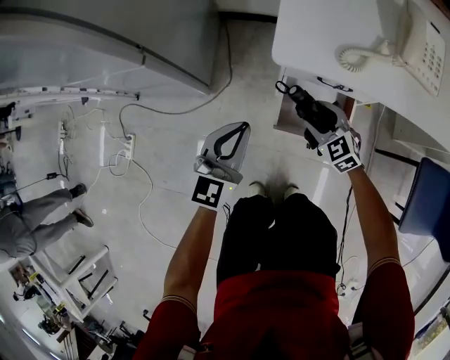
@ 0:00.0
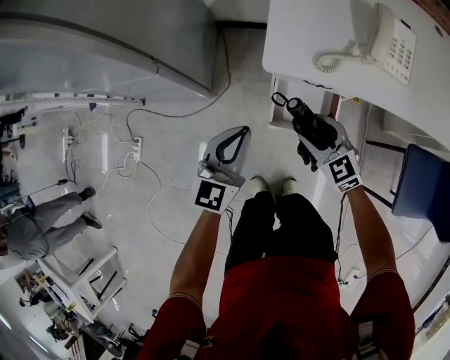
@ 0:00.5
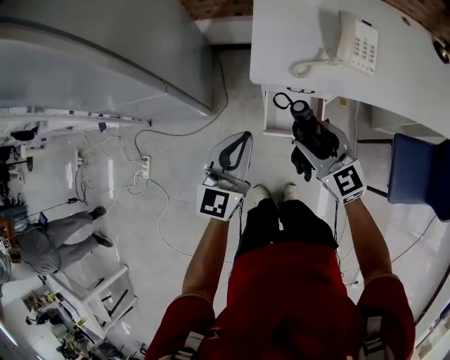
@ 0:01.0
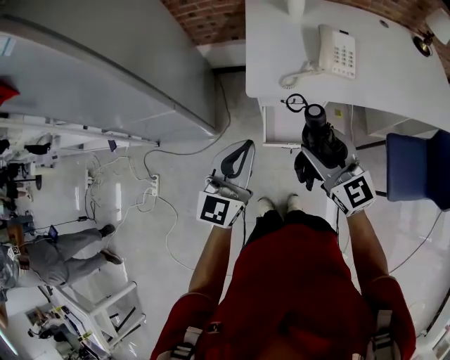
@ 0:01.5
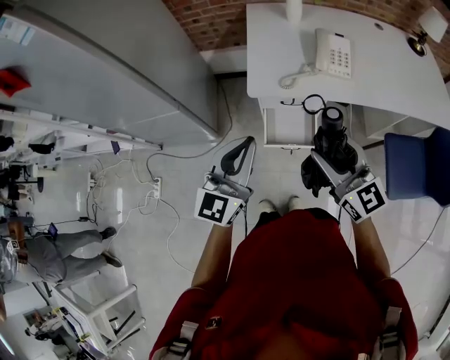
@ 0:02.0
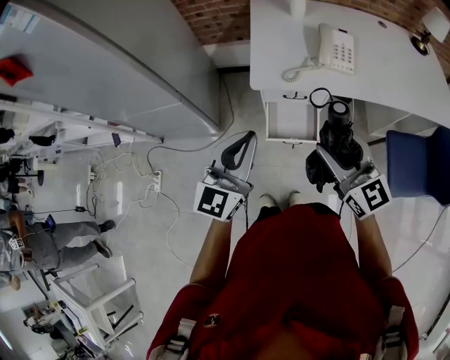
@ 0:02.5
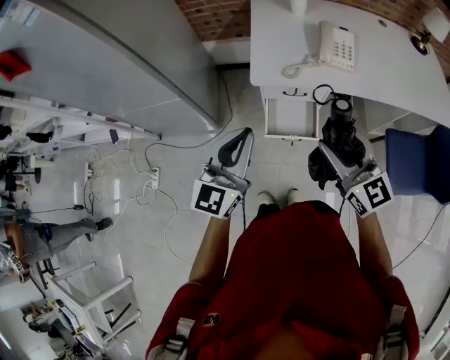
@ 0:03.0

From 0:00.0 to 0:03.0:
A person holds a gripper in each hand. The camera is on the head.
From 0:00.0 to 0:01.5: The grippers both shift upward by about 35 cm. The right gripper swivels approximately 40 degrees.
From 0:01.5 to 0:03.0: The left gripper shifts by some 5 cm; the right gripper moves backward, roughly 5 cm.

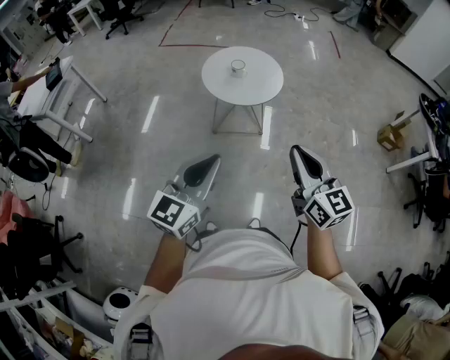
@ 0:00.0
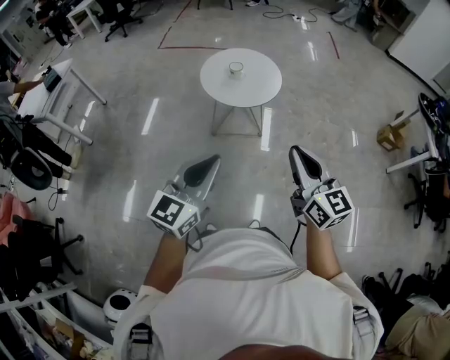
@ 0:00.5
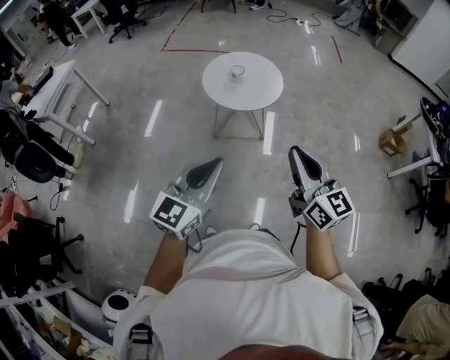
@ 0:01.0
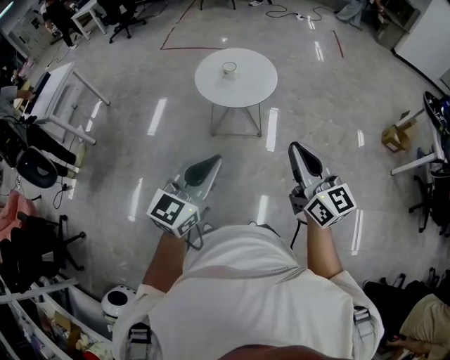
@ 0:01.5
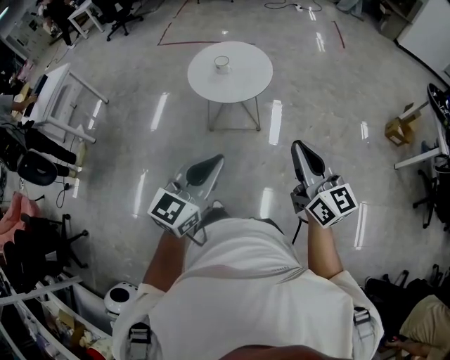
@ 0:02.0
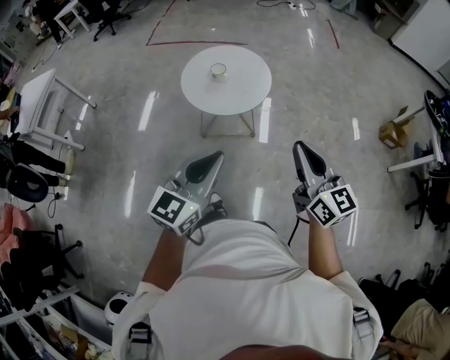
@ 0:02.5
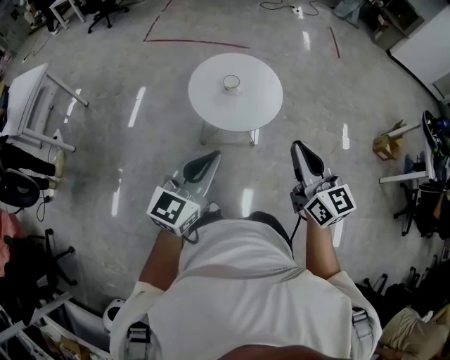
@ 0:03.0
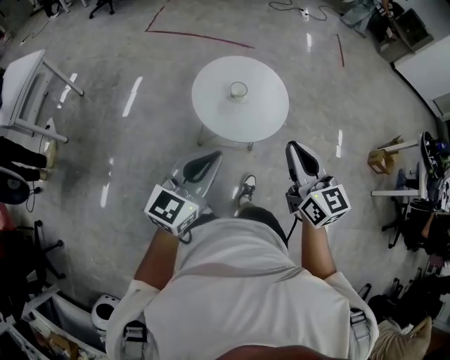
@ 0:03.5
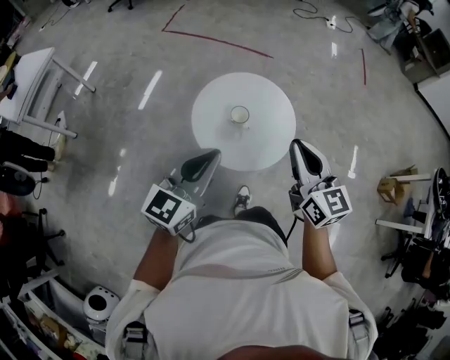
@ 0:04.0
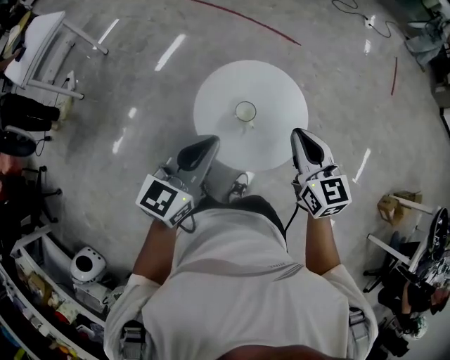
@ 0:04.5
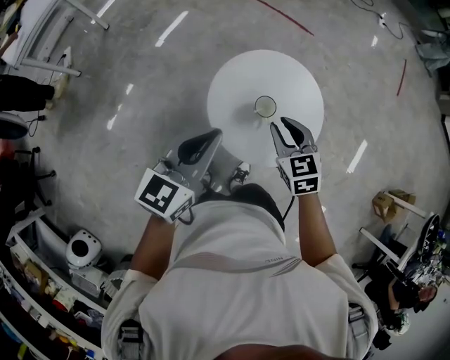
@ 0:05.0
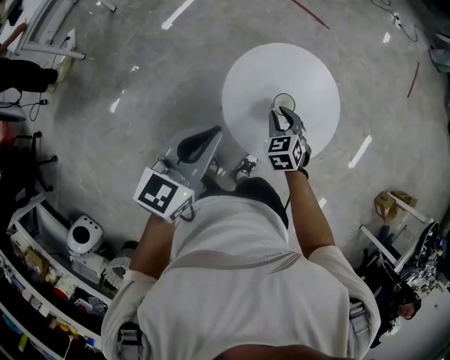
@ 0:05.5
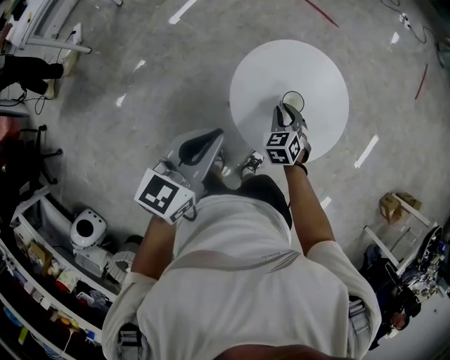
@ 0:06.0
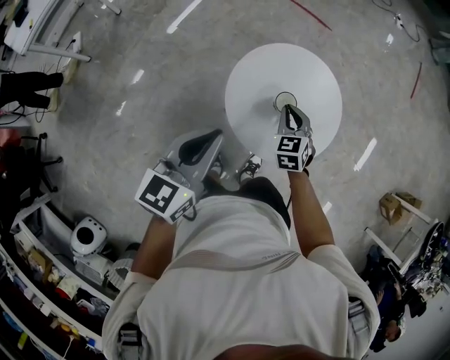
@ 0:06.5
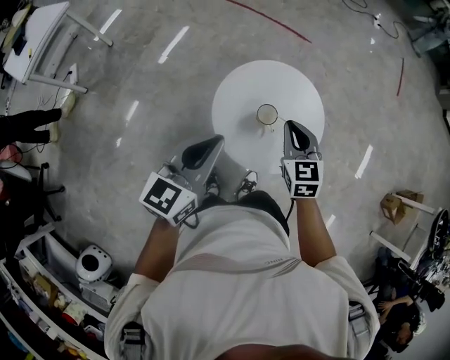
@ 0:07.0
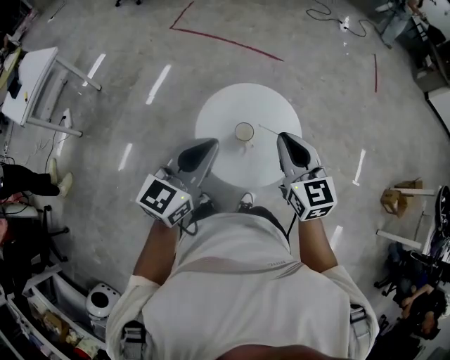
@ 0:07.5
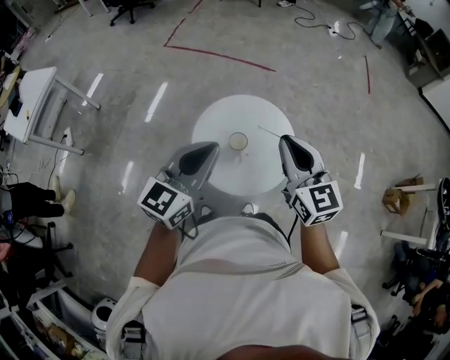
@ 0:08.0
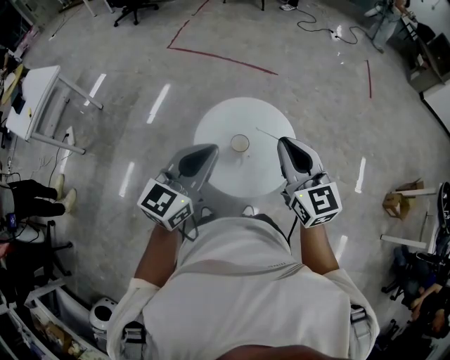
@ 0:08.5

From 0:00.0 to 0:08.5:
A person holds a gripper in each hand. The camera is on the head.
From 0:00.0 to 0:02.0: The grippers both shift to the right by about 15 cm.
From 0:02.0 to 0:04.0: The two grippers travel together, forward, approximately 50 cm.
From 0:04.0 to 0:06.5: The left gripper goes approximately 20 cm to the left, forward and downward, and turns by about 20 degrees; the right gripper travels downward, forward and to the left by some 40 cm, tips its fingers downward by approximately 30 degrees, and opens, then closes once more.
From 0:06.5 to 0:08.5: The right gripper travels upward and to the right by approximately 35 cm, and points its fingers roughly 30 degrees further upward. Meanwhile the left gripper heads upward and to the right, covering about 20 cm, and swivels some 20 degrees.

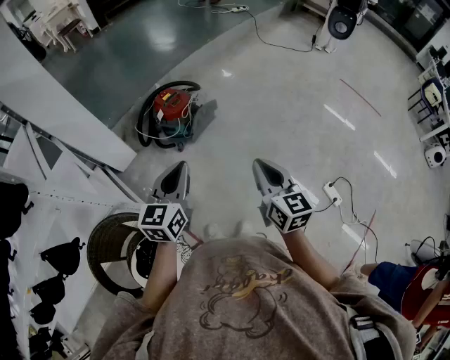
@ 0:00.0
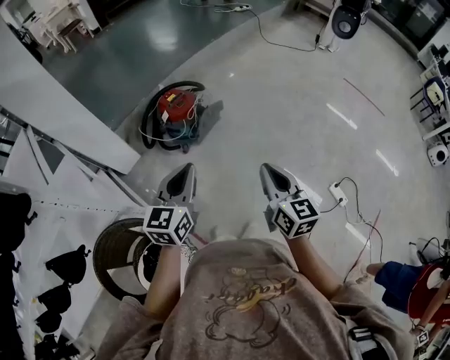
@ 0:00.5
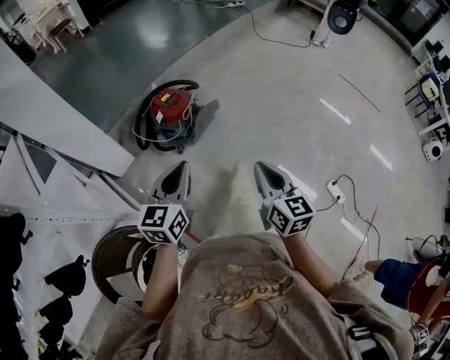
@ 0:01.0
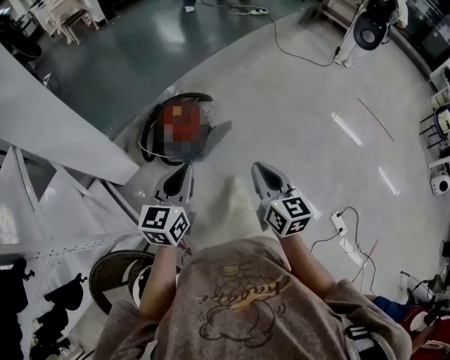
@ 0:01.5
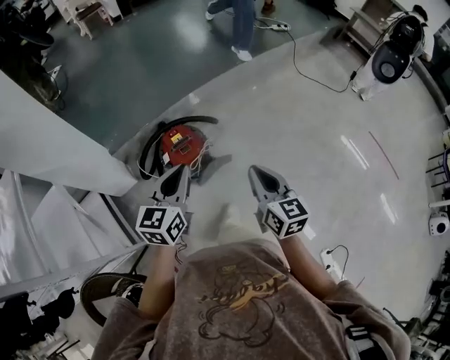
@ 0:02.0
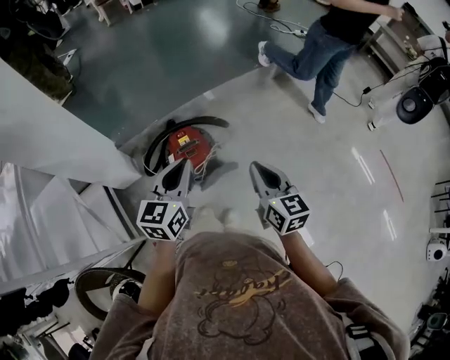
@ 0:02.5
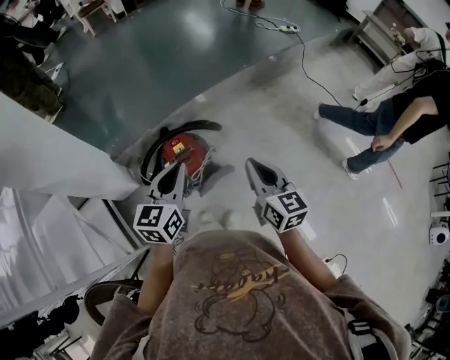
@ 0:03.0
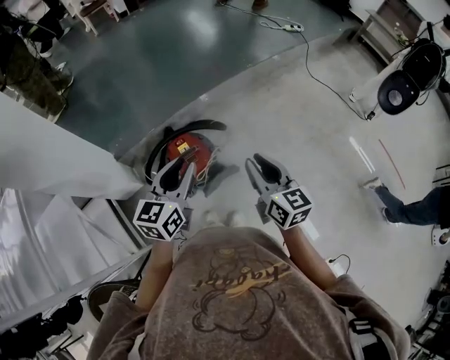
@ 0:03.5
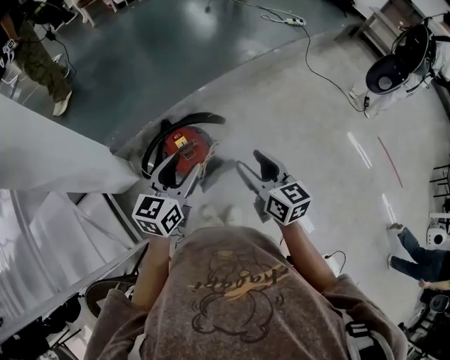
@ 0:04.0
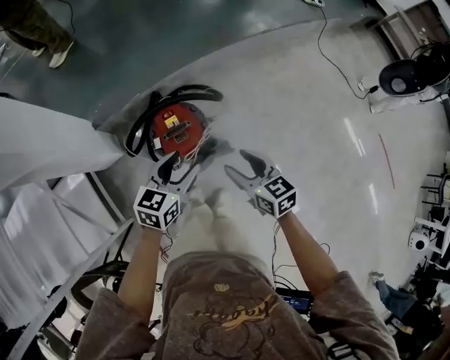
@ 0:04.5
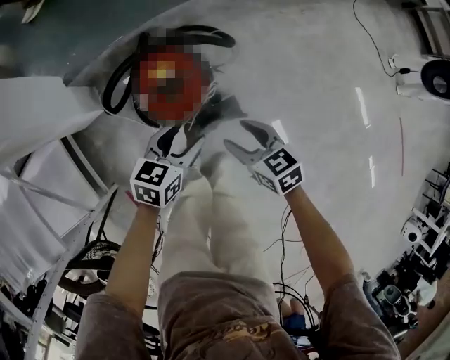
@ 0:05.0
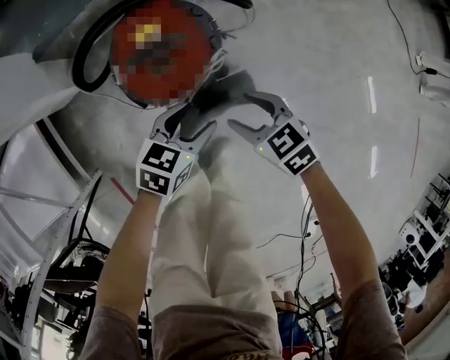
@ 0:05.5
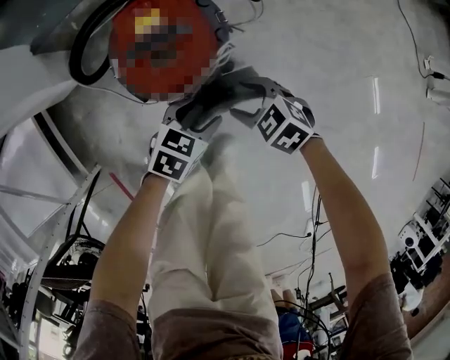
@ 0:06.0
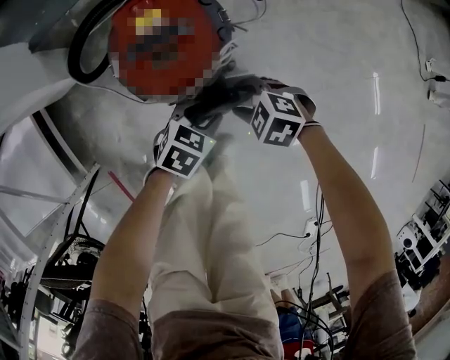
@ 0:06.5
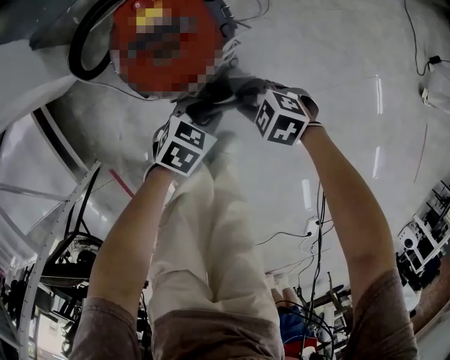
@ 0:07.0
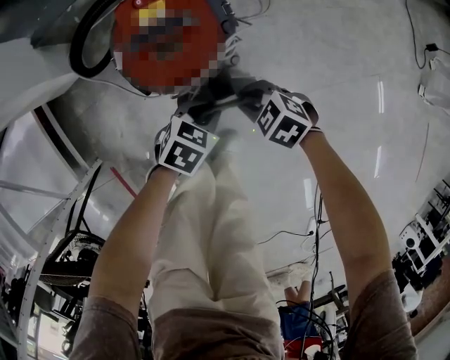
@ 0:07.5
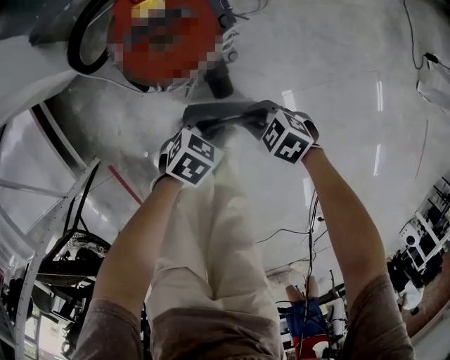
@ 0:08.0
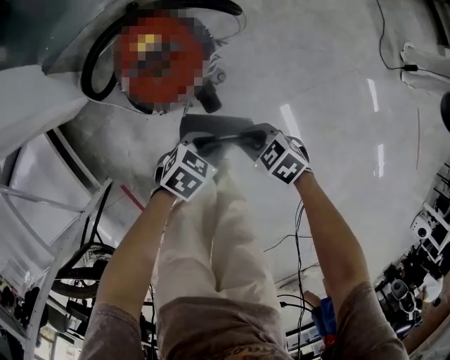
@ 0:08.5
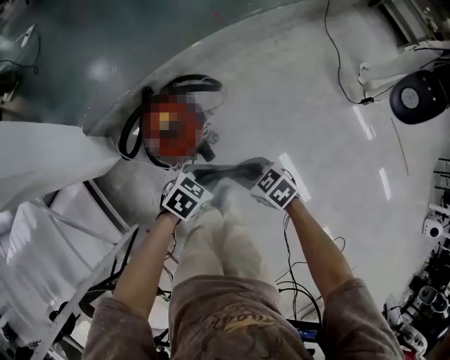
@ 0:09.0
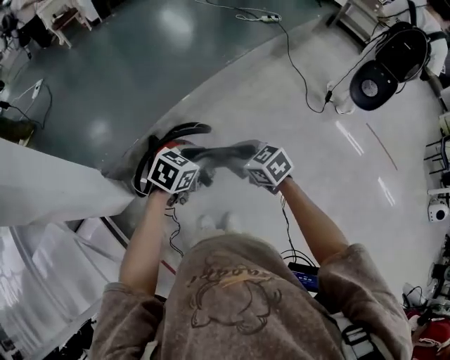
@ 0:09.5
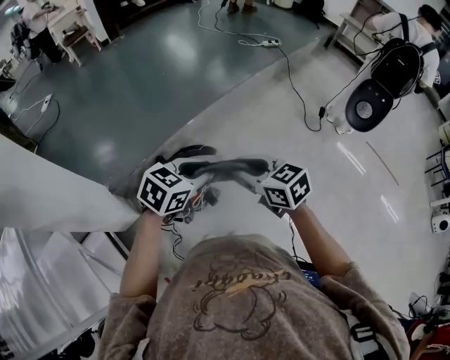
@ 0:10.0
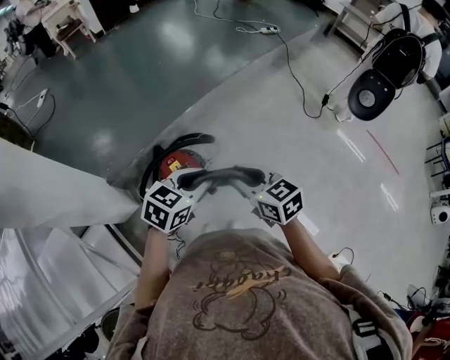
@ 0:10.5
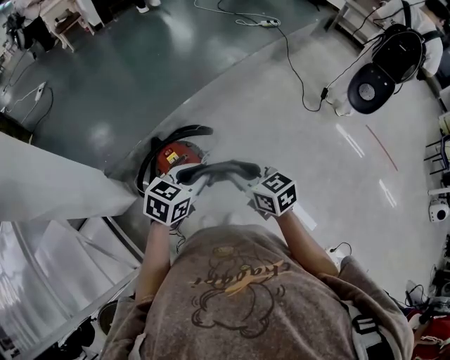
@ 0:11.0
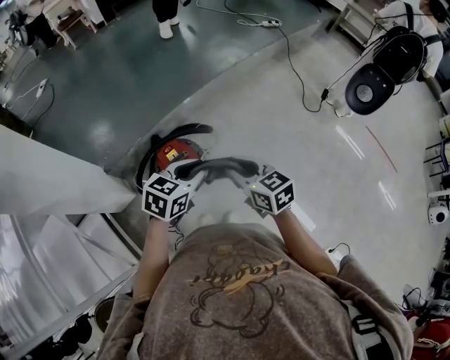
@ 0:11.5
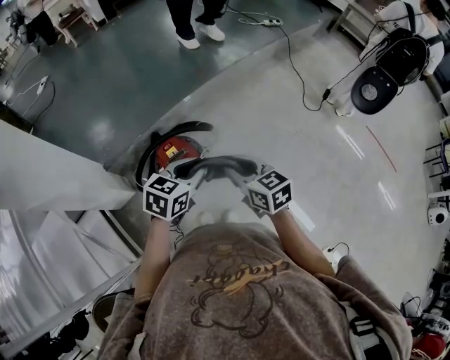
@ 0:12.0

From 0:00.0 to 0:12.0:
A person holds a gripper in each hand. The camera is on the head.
From 0:00.0 to 0:02.0: The grippers both shift forward by about 40 cm.
From 0:02.0 to 0:04.0: Both grippers move forward, some 10 cm. The left gripper opens up; the right gripper opens its fingers.
From 0:04.0 to 0:06.0: Both grippers travel together downward, some 50 cm. The right gripper angles its fingers downward, by about 40 degrees, while the left gripper angles its fingers downward, by roughly 40 degrees.
From 0:06.0 to 0:08.0: The left gripper changes place by roughly 10 cm, and closes its fingers, while the right gripper changes place by some 10 cm, and closes its fingers.
From 0:08.0 to 0:10.0: The grippers both shift upward by roughly 60 cm. The right gripper tilts its fingers some 30 degrees upward. The left gripper swivels some 40 degrees.
From 0:10.0 to 0:12.0: Both grippers travel together downward, roughly 5 cm.

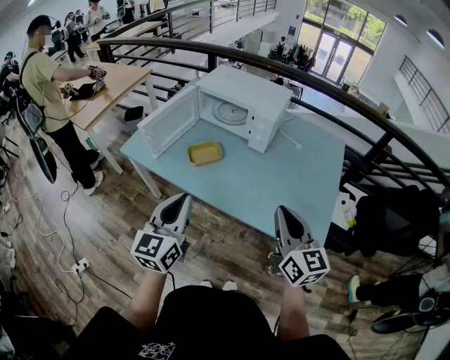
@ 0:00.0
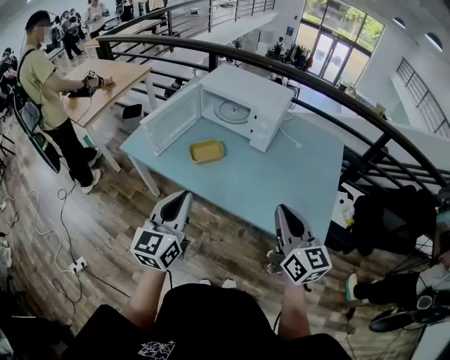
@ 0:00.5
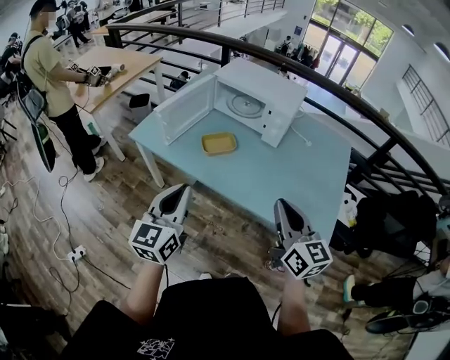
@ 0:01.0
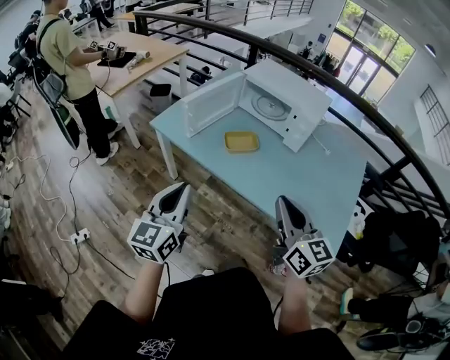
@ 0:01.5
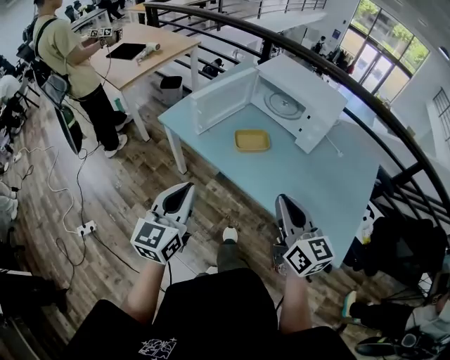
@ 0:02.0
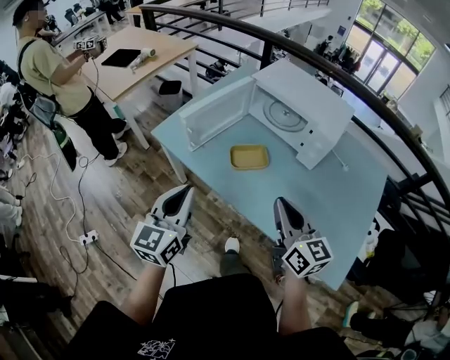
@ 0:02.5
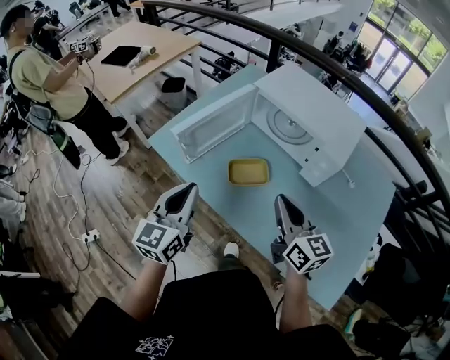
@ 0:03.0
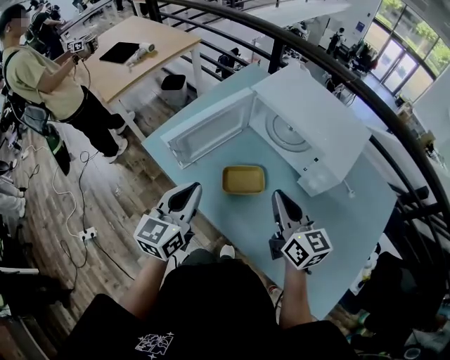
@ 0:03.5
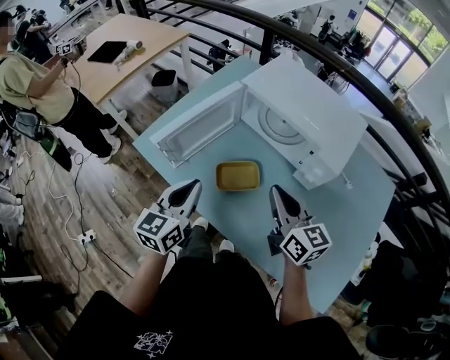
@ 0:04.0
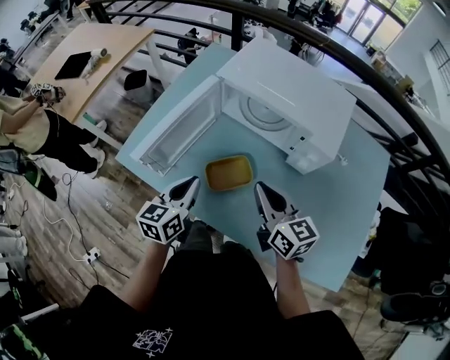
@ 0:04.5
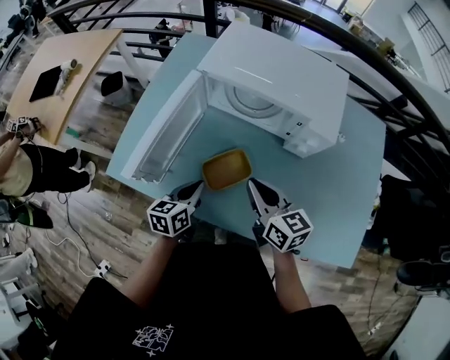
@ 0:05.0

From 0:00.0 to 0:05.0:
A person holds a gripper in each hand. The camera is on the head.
From 0:00.0 to 0:02.5: The left gripper goes approximately 15 cm to the left and forward; the right gripper travels forward and to the left by about 20 cm.
From 0:02.5 to 0:05.0: The two grippers go about 30 cm forward and downward. The left gripper changes its angle by about 40 degrees.
